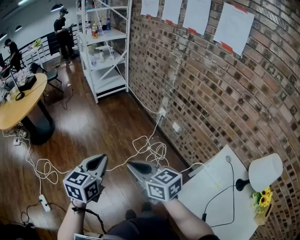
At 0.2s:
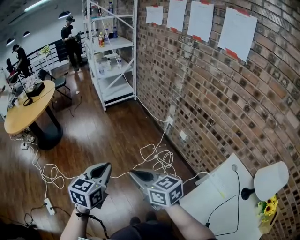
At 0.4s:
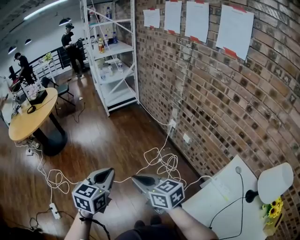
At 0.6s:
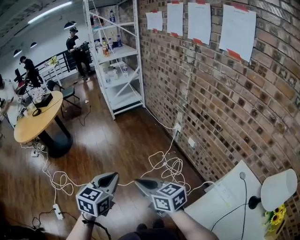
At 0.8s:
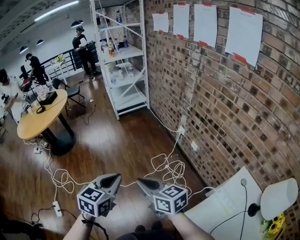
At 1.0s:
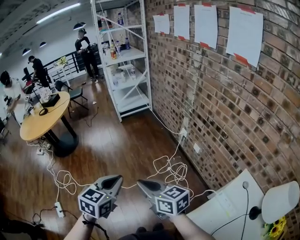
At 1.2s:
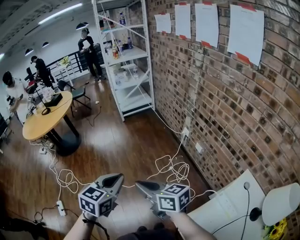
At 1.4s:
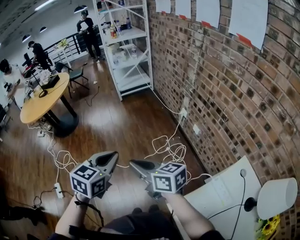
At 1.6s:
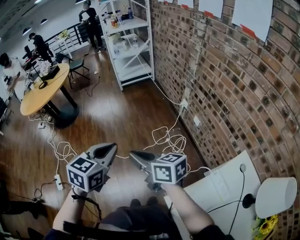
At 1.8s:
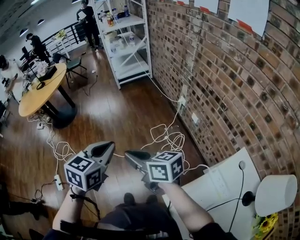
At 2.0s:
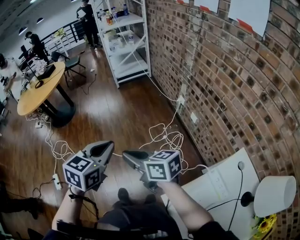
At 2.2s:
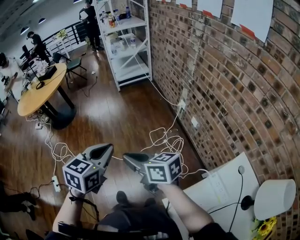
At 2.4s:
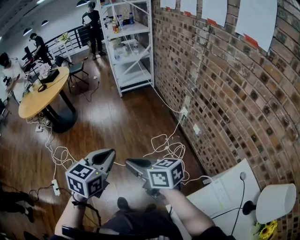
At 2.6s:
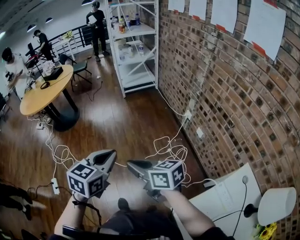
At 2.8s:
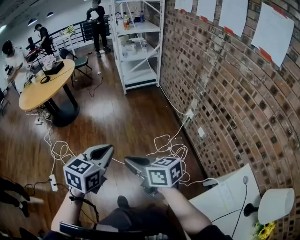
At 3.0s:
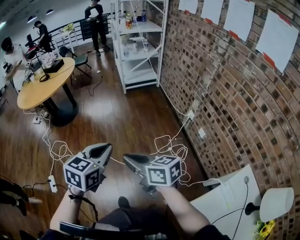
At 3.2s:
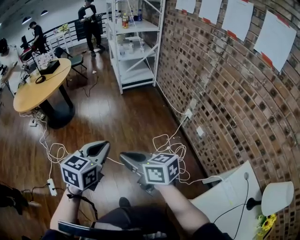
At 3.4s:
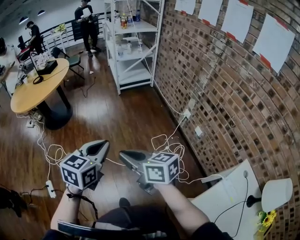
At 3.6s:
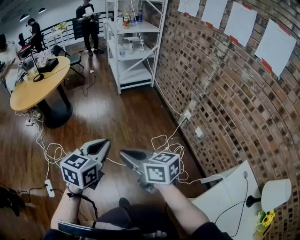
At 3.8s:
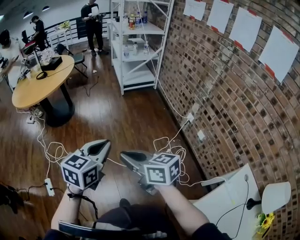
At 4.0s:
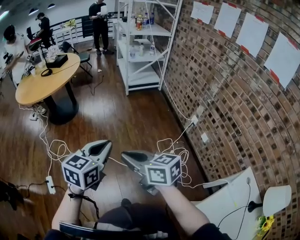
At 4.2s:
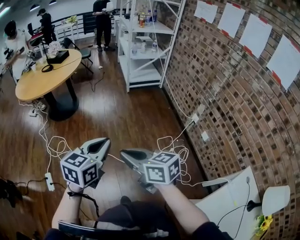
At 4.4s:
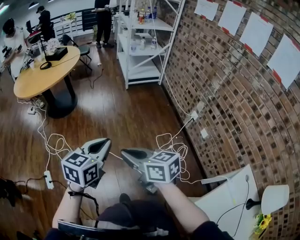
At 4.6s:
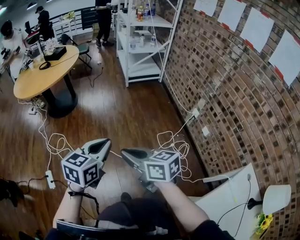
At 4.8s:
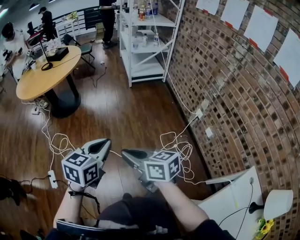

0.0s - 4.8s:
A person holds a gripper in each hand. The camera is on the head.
0.0s - 1.6s: Both grippers travel together to the right, about 10 cm. The right gripper rotates roughly 20 degrees.
1.6s - 3.2s: The grippers both shift to the left and forward by about 20 cm.
3.2s - 4.8s: Both grippers travel together to the left, approximately 10 cm.

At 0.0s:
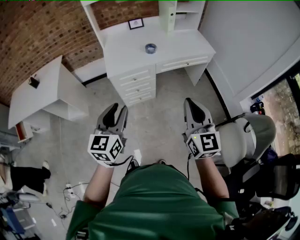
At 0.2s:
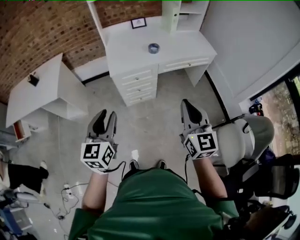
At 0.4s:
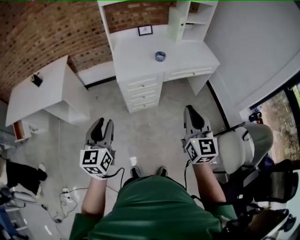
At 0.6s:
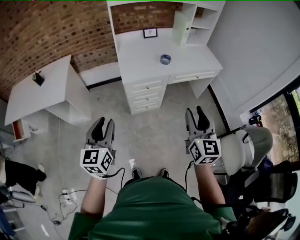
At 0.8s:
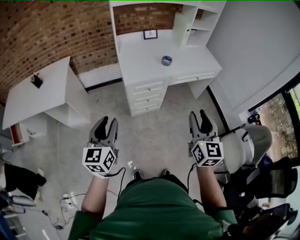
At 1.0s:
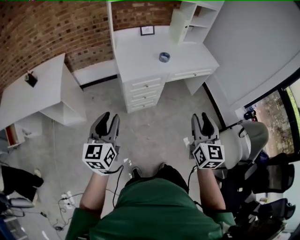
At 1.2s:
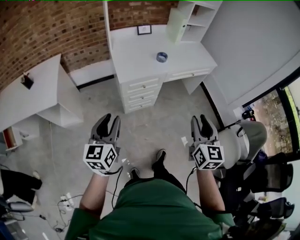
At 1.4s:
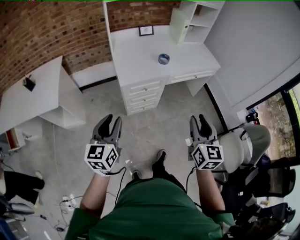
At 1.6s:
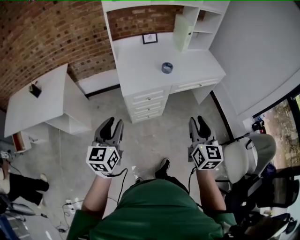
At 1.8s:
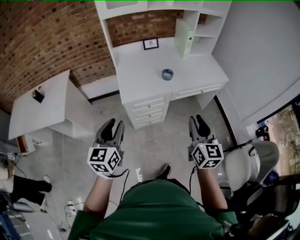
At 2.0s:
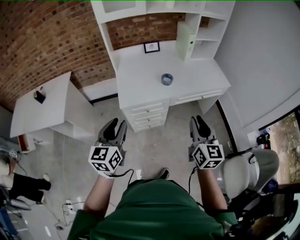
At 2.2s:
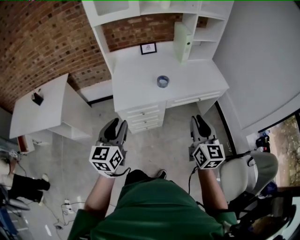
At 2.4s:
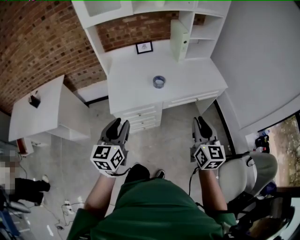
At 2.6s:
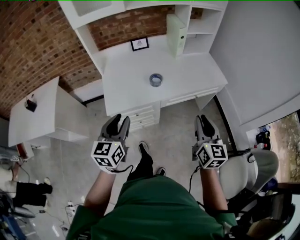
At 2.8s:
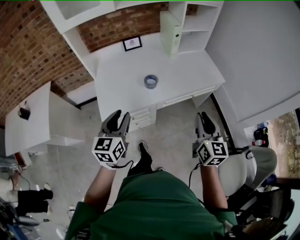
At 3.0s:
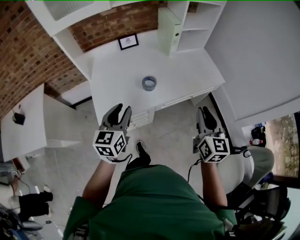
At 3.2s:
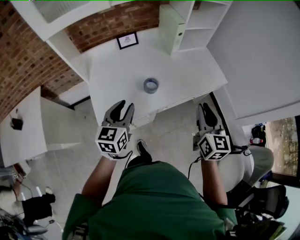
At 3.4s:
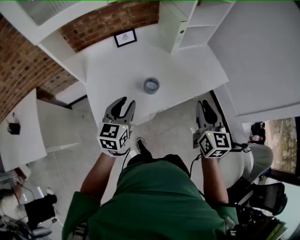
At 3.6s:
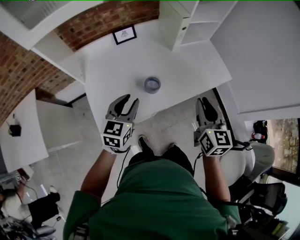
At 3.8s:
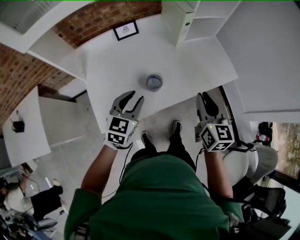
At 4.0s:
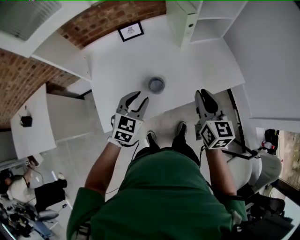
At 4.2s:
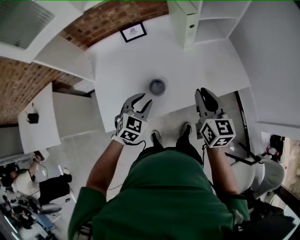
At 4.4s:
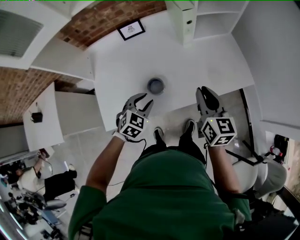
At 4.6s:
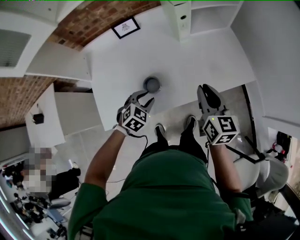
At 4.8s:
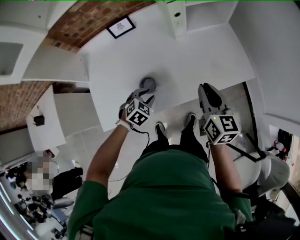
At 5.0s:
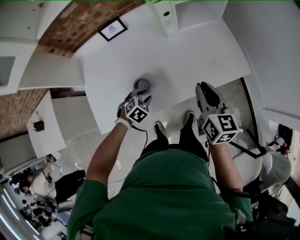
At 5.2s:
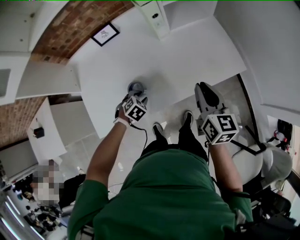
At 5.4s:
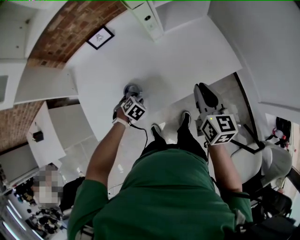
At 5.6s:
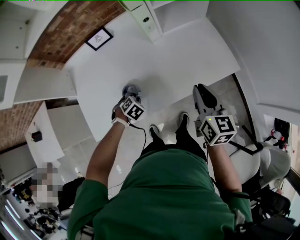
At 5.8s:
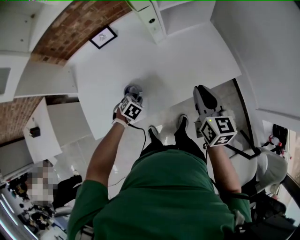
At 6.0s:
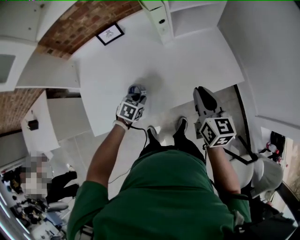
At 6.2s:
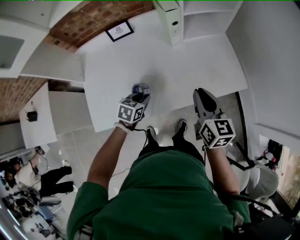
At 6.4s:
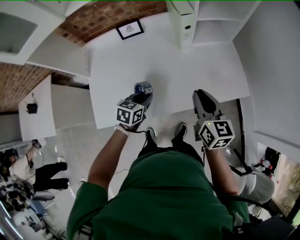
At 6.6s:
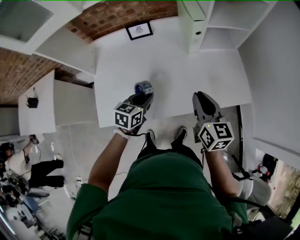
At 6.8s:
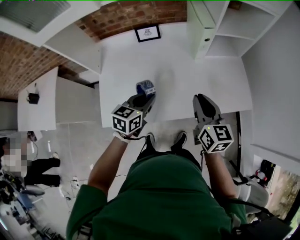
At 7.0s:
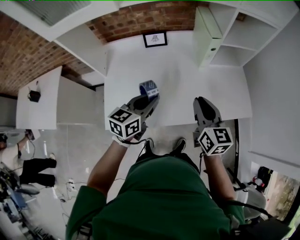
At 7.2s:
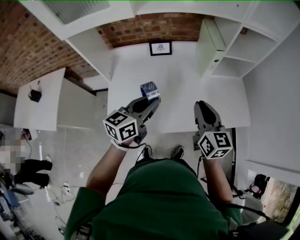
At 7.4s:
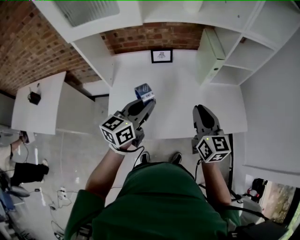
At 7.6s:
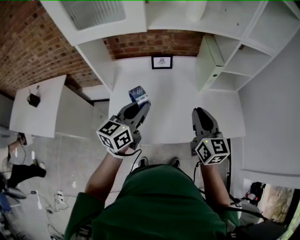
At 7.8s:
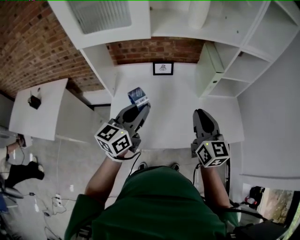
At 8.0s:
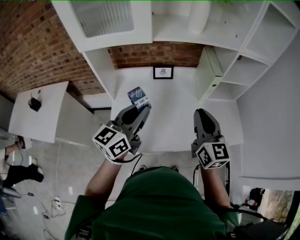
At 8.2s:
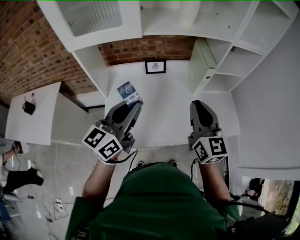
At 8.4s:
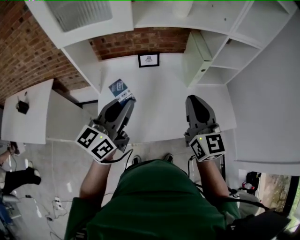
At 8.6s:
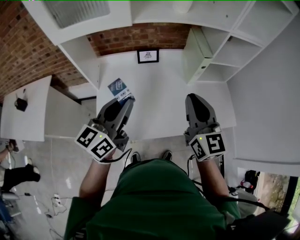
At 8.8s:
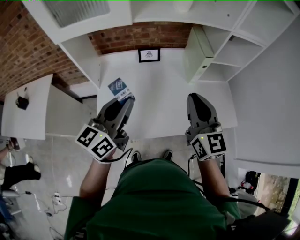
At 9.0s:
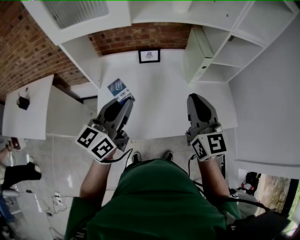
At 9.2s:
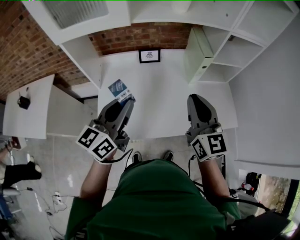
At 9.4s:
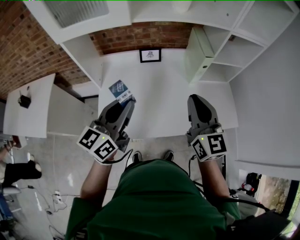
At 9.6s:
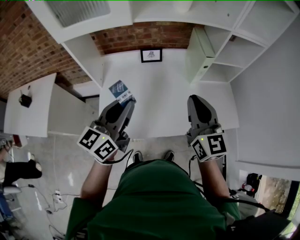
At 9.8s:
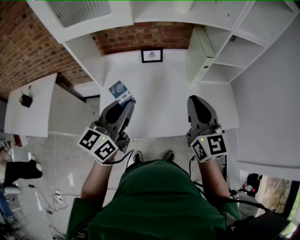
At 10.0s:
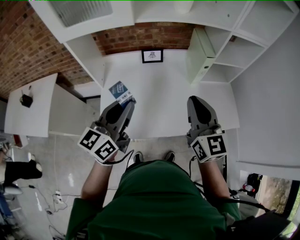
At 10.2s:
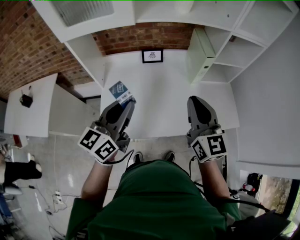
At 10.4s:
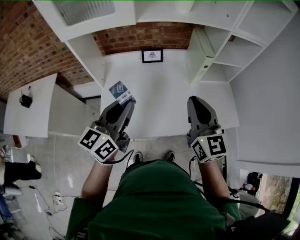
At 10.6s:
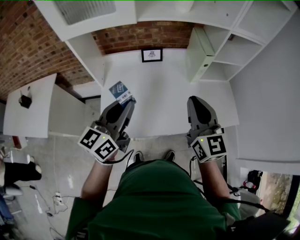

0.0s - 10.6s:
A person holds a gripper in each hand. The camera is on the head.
0.0s - 1.6s: The grippers both shift to the left and forward by some 20 cm. The right gripper opens.
1.6s - 3.0s: Both grippers move forward and to the right, some 40 cm.
3.0s - 4.6s: The right gripper shifts some 30 cm forward and downward, and rotates about 20 degrees, while the left gripper is displaced forward, downward and to the right by some 35 cm, and angles its fingers downward, by about 40 degrees.
4.6s - 6.0s: The left gripper goes some 5 cm downward, and changes its angle by approximately 20 degrees; the right gripper shifts by some 10 cm.
6.0s - 7.6s: The left gripper is displaced upward and to the left by about 40 cm, and points its fingers approximately 60 degrees further upward. The right gripper travels to the left and upward by about 30 cm, and turns by about 20 degrees.
7.6s - 9.0s: Both grippers travel together upward, about 5 cm.
9.0s - 10.6s: The grippers move only a little.

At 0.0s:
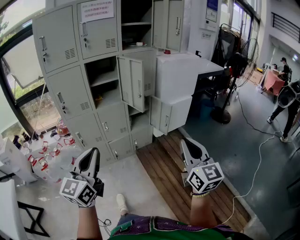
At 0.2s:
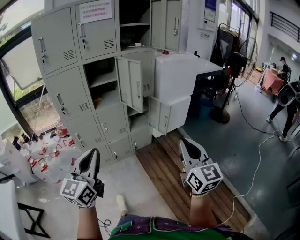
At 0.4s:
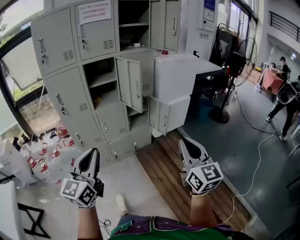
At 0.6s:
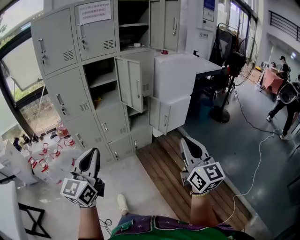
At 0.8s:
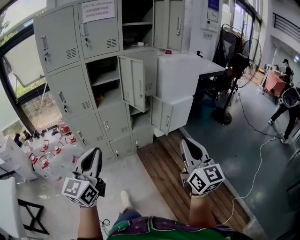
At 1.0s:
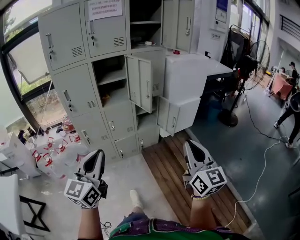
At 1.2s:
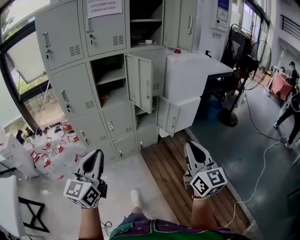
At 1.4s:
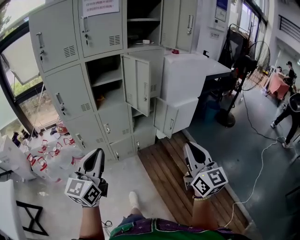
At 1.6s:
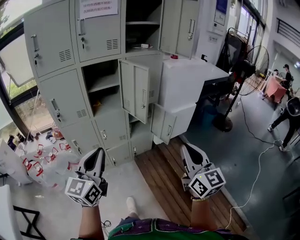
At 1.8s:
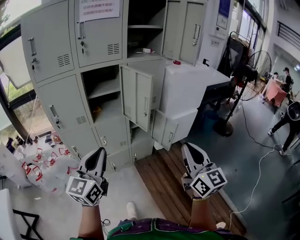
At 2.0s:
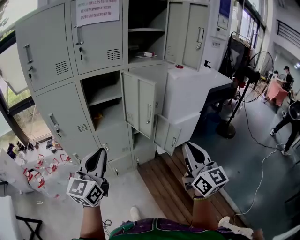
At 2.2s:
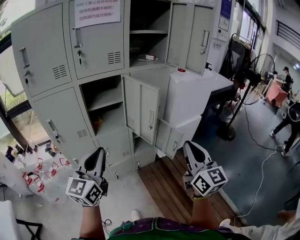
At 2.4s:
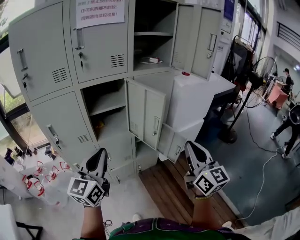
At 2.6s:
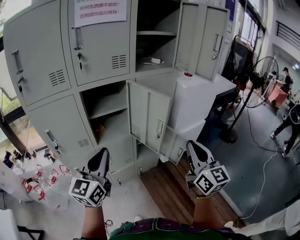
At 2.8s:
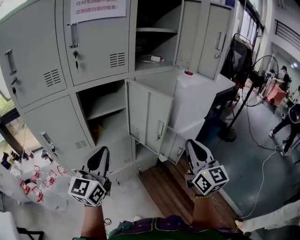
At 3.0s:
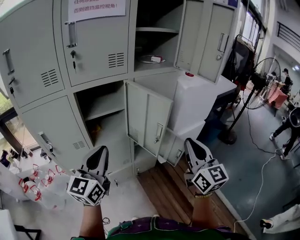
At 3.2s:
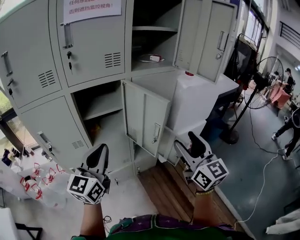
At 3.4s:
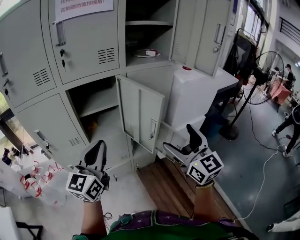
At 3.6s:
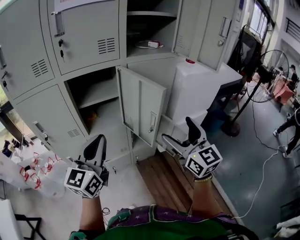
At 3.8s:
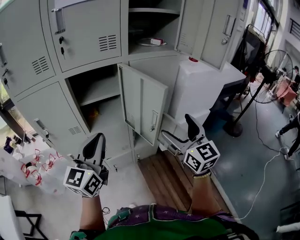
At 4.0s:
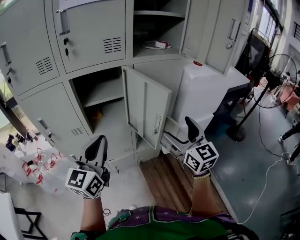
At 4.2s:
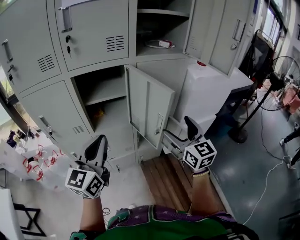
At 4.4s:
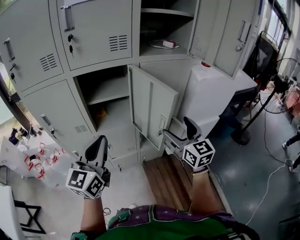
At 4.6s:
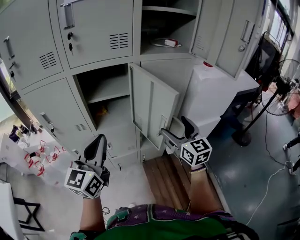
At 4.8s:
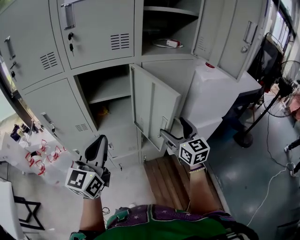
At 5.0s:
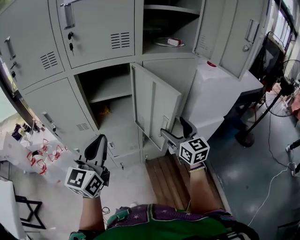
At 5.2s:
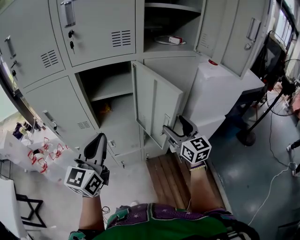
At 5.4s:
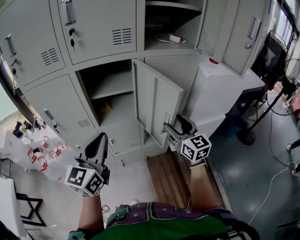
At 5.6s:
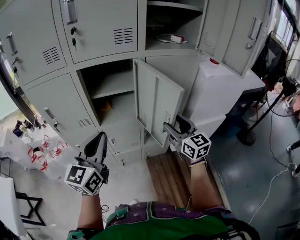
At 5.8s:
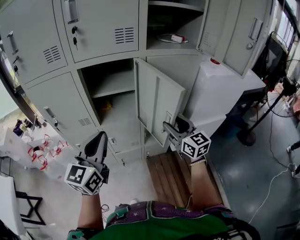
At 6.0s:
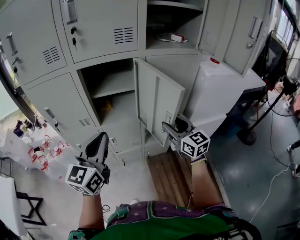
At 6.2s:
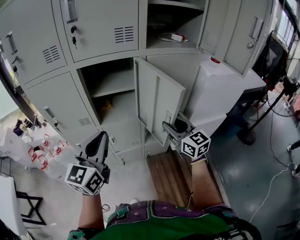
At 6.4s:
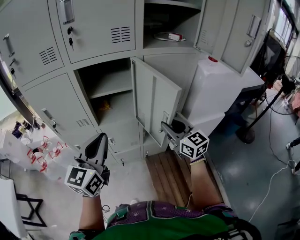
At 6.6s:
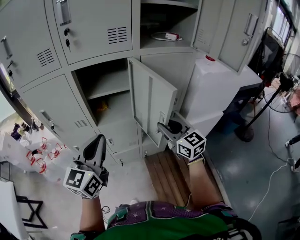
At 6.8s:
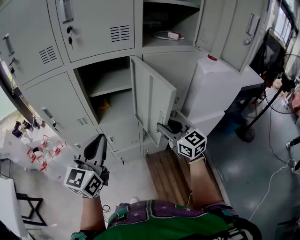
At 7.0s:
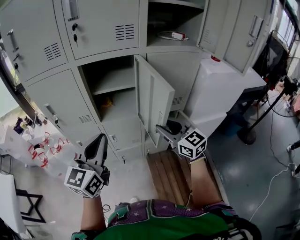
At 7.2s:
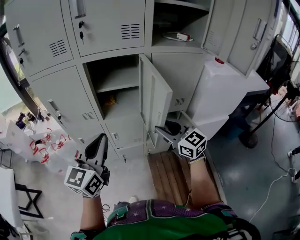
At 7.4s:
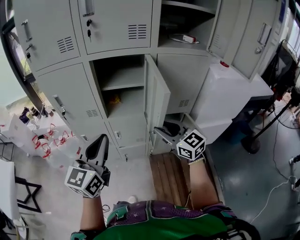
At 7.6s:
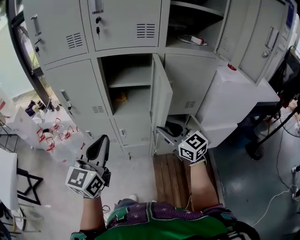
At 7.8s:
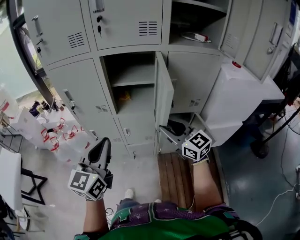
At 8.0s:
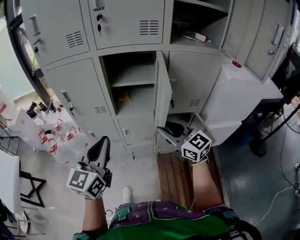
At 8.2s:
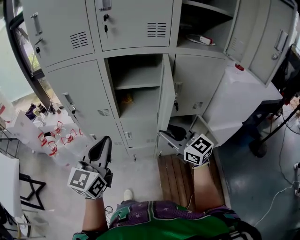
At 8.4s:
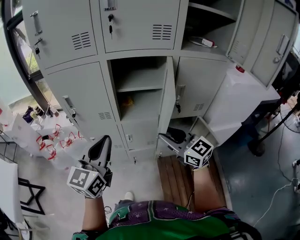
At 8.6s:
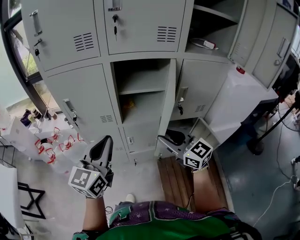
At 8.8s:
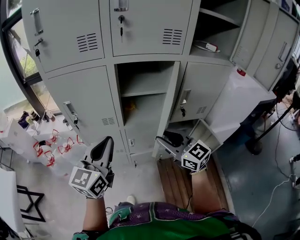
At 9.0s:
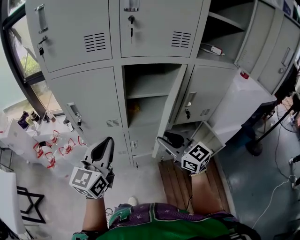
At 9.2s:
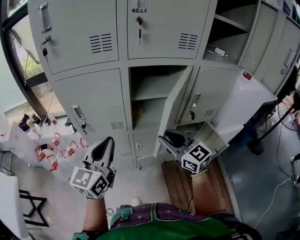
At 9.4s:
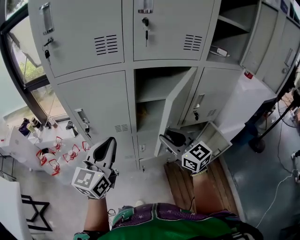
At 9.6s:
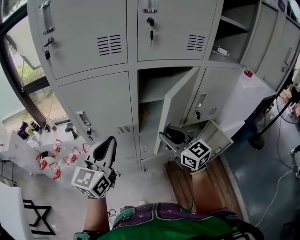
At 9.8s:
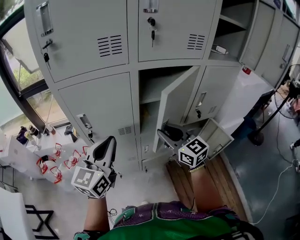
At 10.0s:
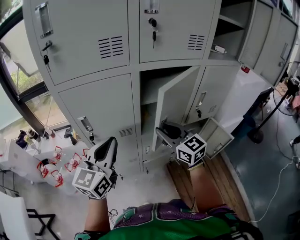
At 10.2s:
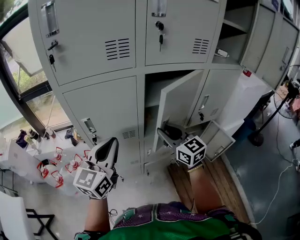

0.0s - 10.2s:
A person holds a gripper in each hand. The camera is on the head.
0.0s - 1.4s: The grippers both shift forward by approximately 10 cm.
1.4s - 3.0s: Both grippers travel together forward, approximately 35 cm.
3.0s - 4.4s: The right gripper shifts approximately 15 cm forward and downward, and opens.
4.4s - 5.8s: The right gripper changes place by roughly 5 cm, and closes up.
5.8s - 7.2s: The right gripper moves to the left, about 5 cm.
7.2s - 8.8s: The left gripper shifts roughly 15 cm to the left and forward. Meanwhile the right gripper shifts some 15 cm to the left.
8.8s - 10.2s: The left gripper is displaced to the left and forward by approximately 15 cm. Meanwhile the right gripper heads forward and to the left, covering about 15 cm.
